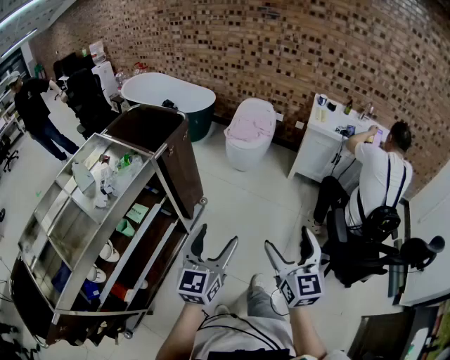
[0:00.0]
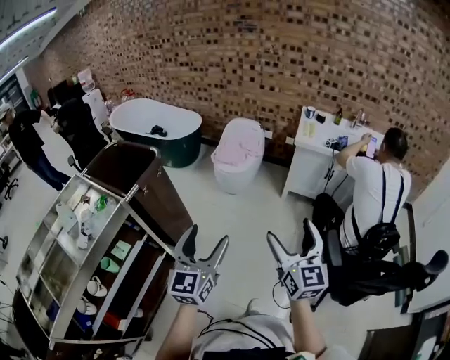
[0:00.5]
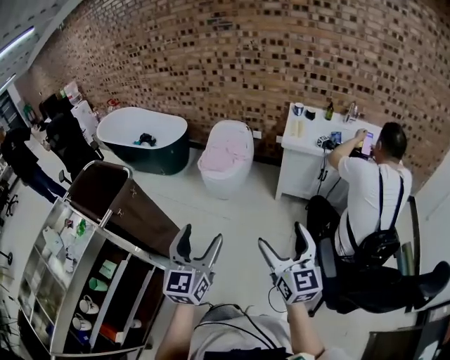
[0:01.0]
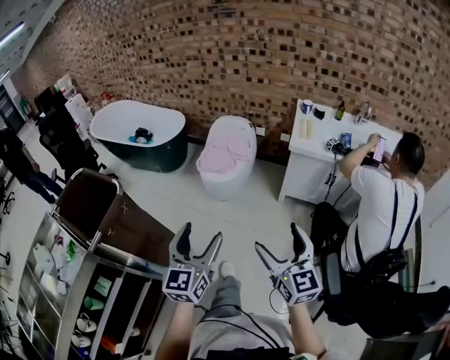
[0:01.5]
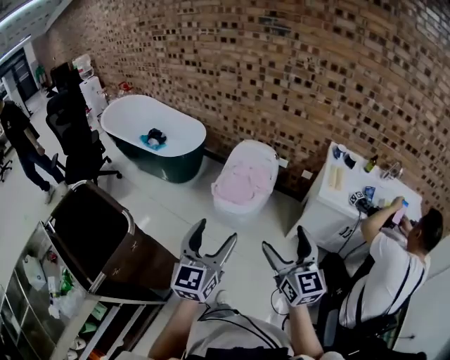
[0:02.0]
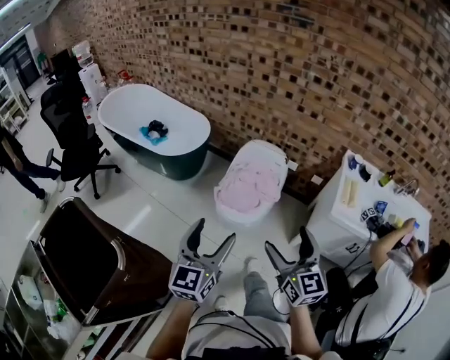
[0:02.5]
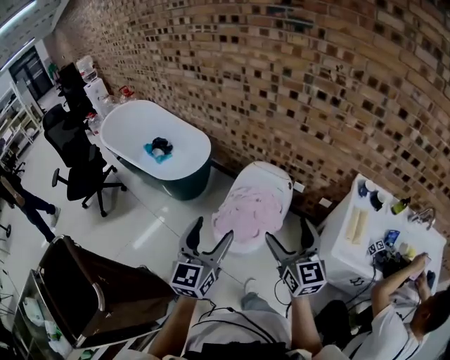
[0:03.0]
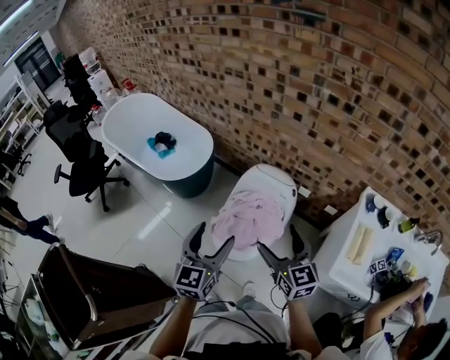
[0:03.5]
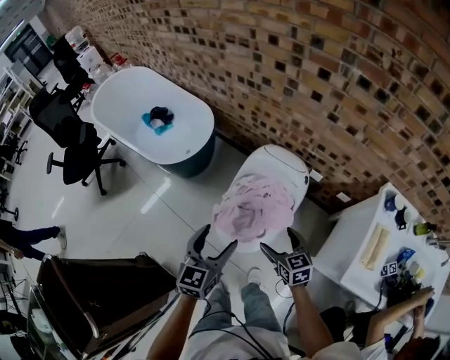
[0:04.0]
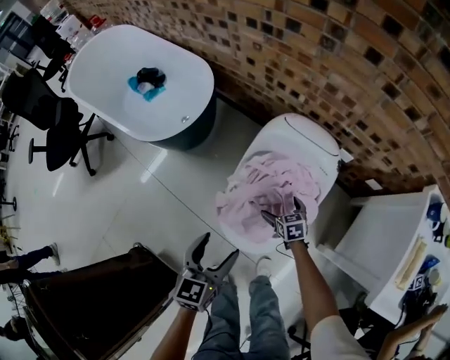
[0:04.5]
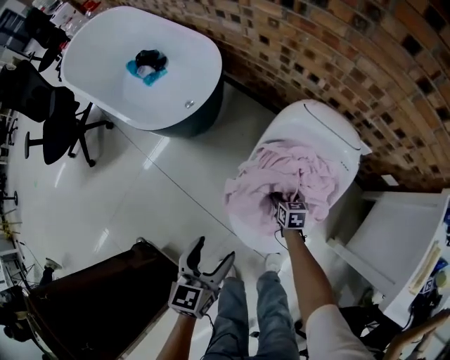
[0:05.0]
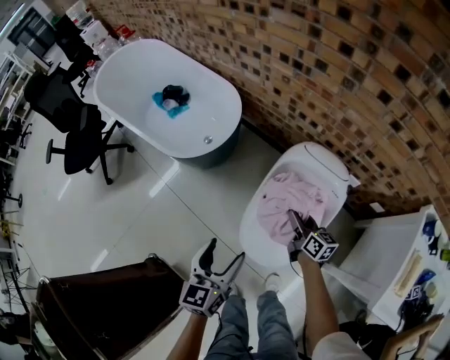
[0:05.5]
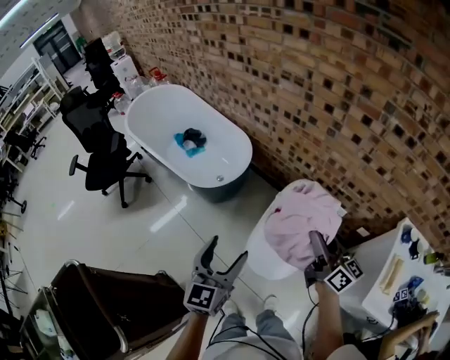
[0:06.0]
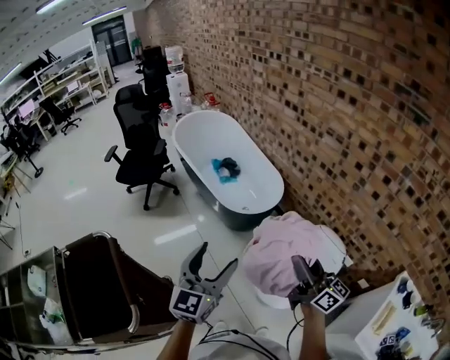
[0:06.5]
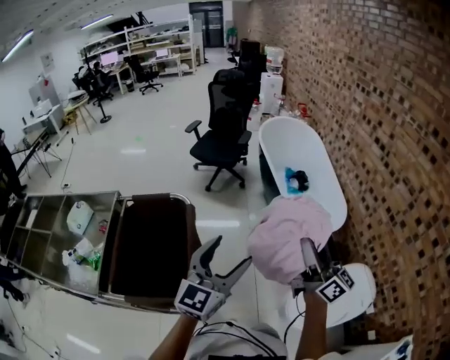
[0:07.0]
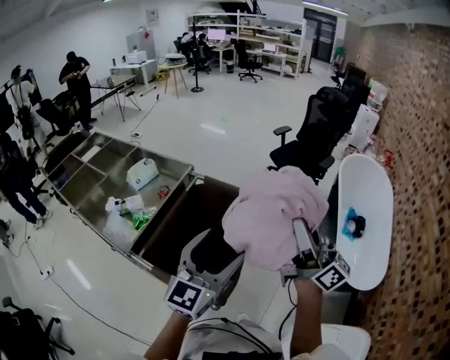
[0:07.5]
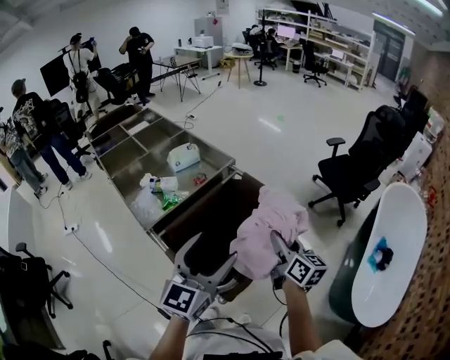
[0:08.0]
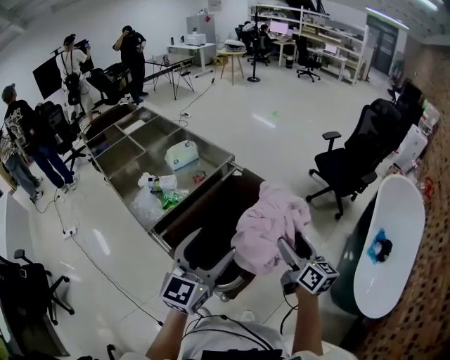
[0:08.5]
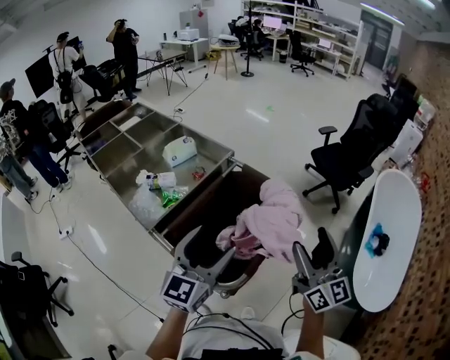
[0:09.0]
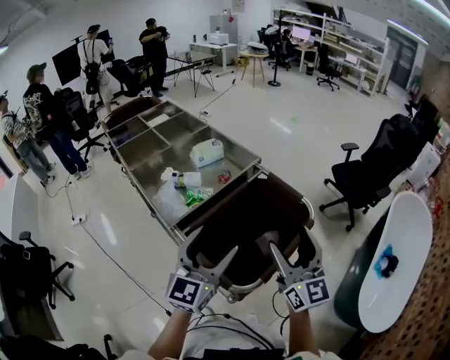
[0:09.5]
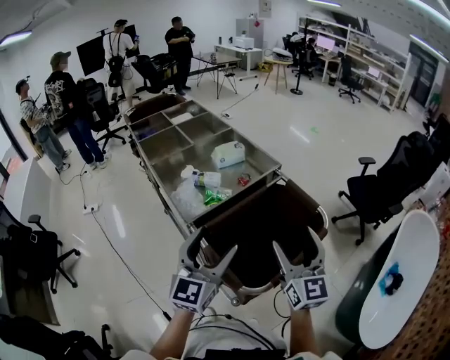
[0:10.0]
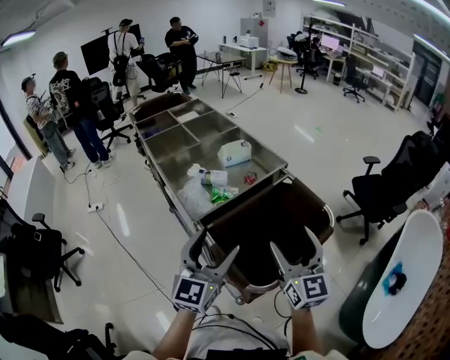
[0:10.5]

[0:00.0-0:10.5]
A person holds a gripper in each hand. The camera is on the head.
0:00.0 to 0:02.0: The two grippers travel together, forward, some 60 cm.
0:02.0 to 0:04.0: The pair of grippers is taken forward, some 50 cm. The right gripper is displaced downward by roughly 30 cm, and swivels about 40 degrees, while the left gripper changes its angle by about 20 degrees.
0:04.0 to 0:06.5: The right gripper heads upward and to the left, covering roughly 40 cm, points its fingers about 50 degrees further upward, and closes its fingers. The left gripper travels to the left and upward by roughly 35 cm, and swivels approximately 30 degrees.
0:06.5 to 0:08.5: The pair of grippers is taken some 50 cm. The left gripper turns by roughly 70 degrees; the right gripper turns by approximately 70 degrees, and opens up.
0:08.5 to 0:10.5: The right gripper travels to the left and upward by roughly 20 cm, and turns by about 40 degrees. The left gripper goes roughly 10 cm to the left.

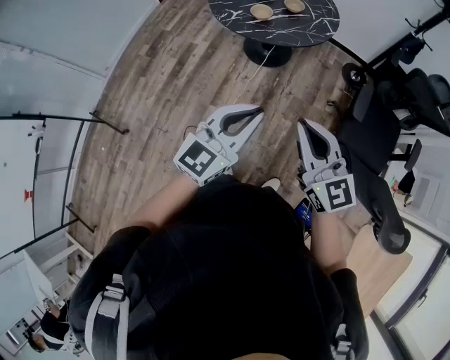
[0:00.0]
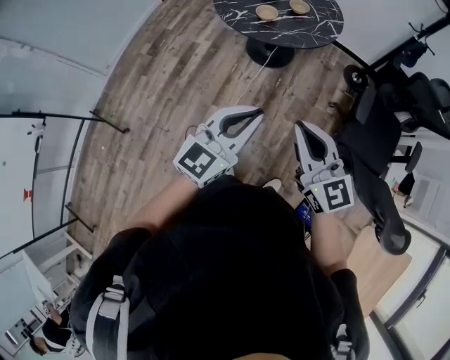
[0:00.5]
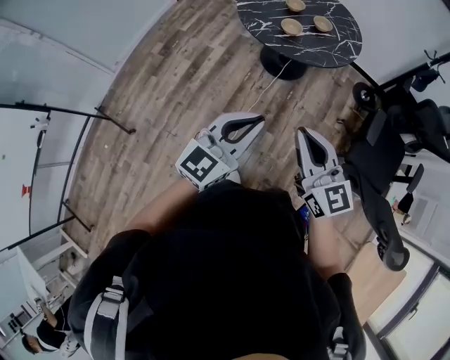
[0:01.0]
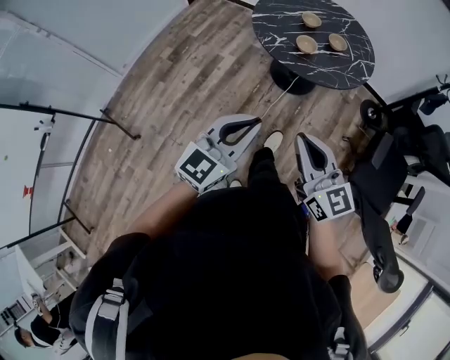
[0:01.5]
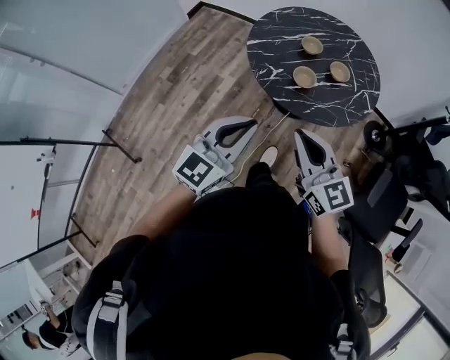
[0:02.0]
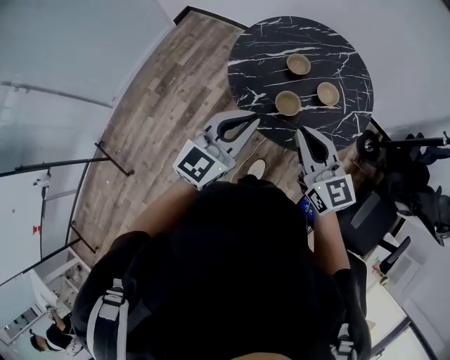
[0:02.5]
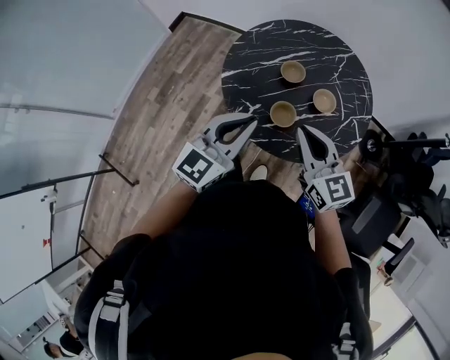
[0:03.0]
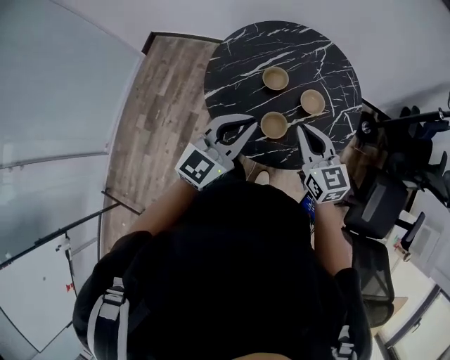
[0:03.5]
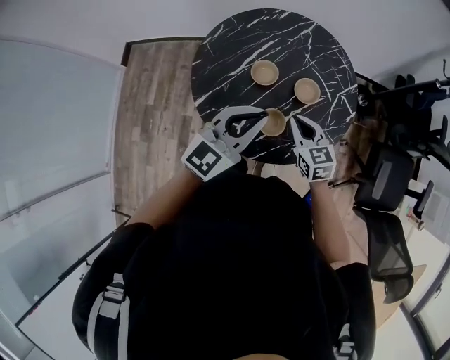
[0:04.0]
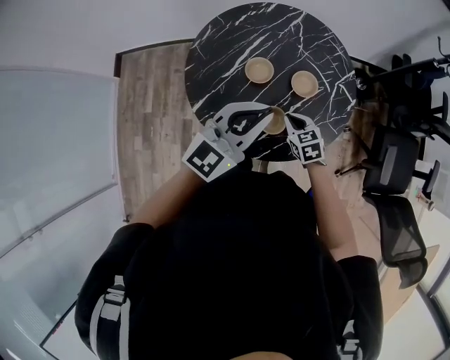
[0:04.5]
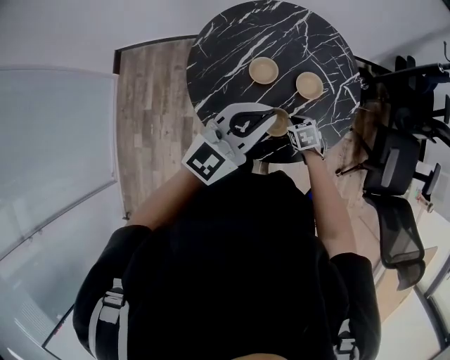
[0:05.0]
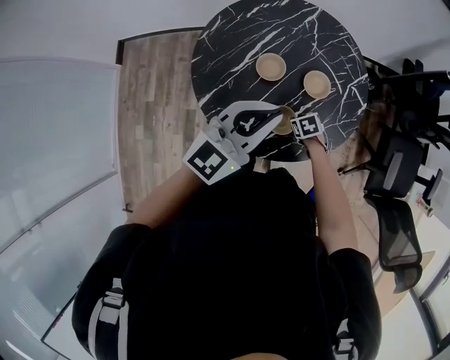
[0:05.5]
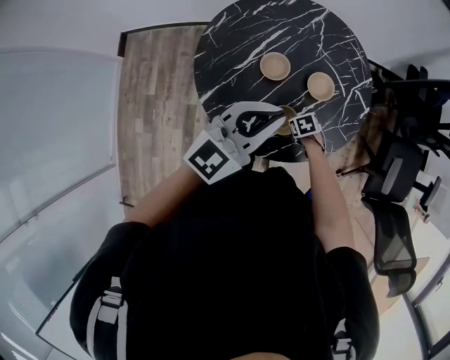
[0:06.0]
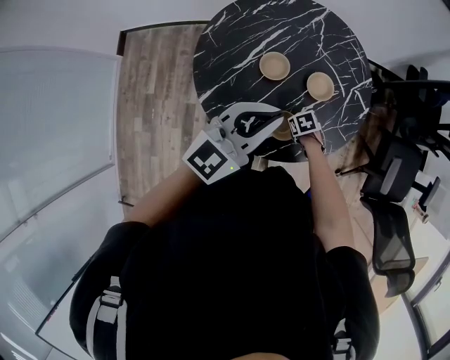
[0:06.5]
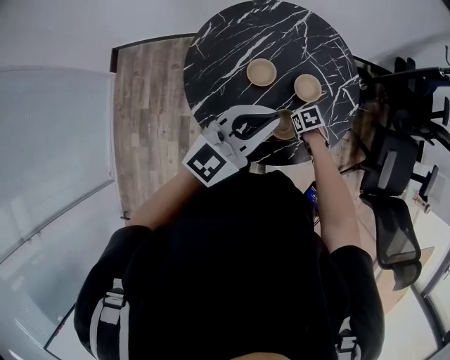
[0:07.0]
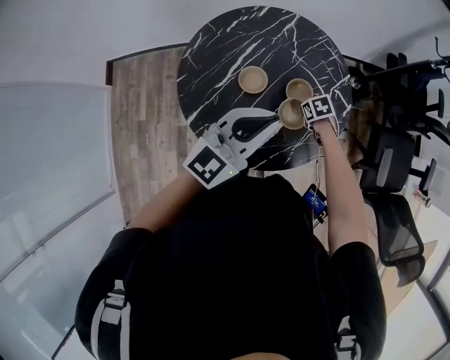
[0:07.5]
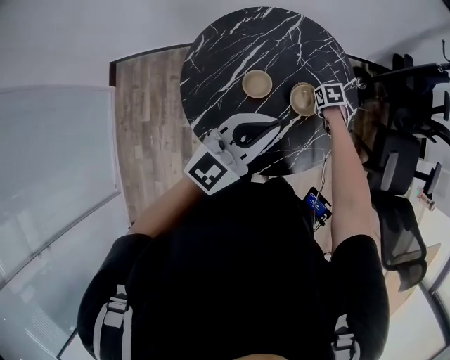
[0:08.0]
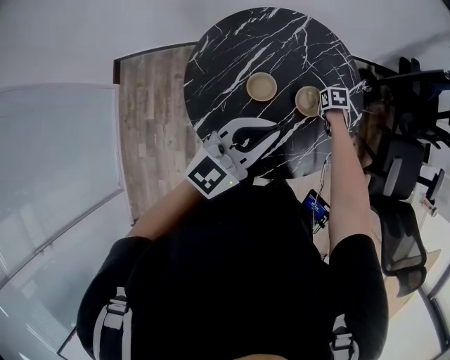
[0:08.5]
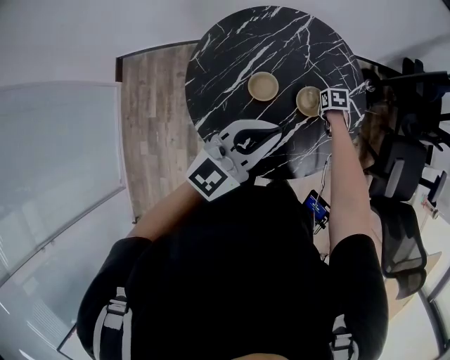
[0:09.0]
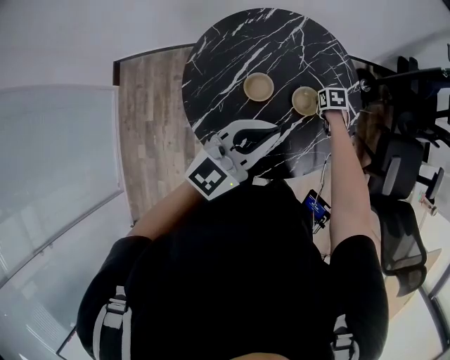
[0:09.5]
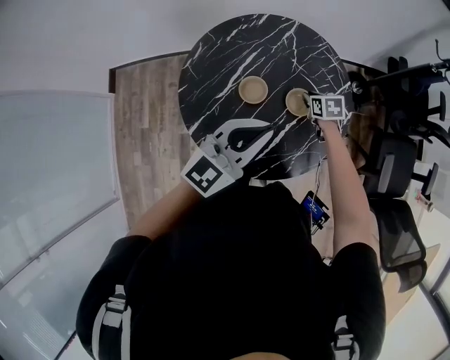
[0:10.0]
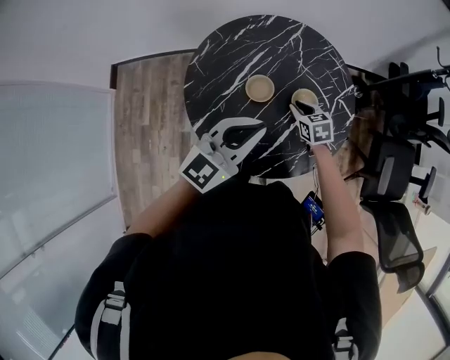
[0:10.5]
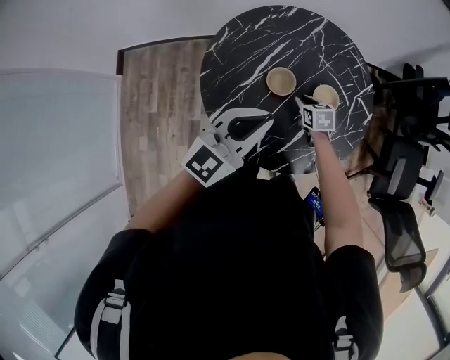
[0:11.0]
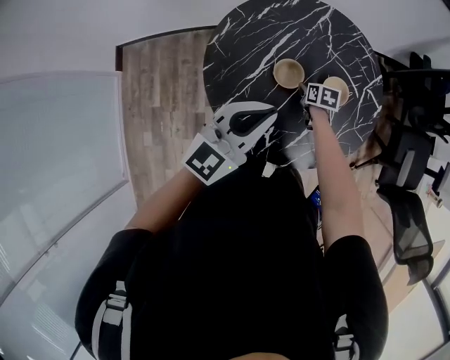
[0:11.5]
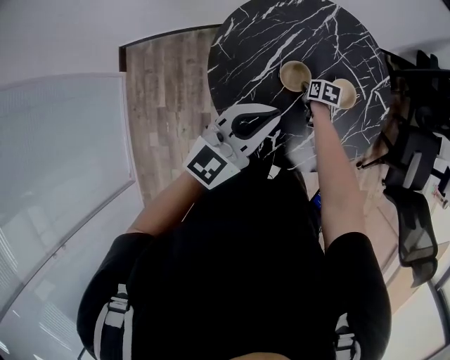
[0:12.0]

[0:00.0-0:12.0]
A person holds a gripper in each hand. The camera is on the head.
0:00.0 to 0:02.0: The two grippers go approximately 35 cm forward and to the left.
0:02.0 to 0:04.0: The right gripper changes place by roughly 40 cm, and rotates roughly 40 degrees, while the left gripper changes place by roughly 40 cm, and rotates about 30 degrees.
0:04.0 to 0:06.0: The right gripper heads downward, covering about 25 cm, and angles its fingers downward, by about 50 degrees.
0:06.0 to 0:08.0: The right gripper ends up some 20 cm from where it was.
0:08.0 to 0:10.0: The right gripper shifts approximately 5 cm upward.
0:10.0 to 0:12.0: The left gripper goes about 15 cm to the left. The right gripper travels to the left and downward by approximately 20 cm, and turns by about 20 degrees.

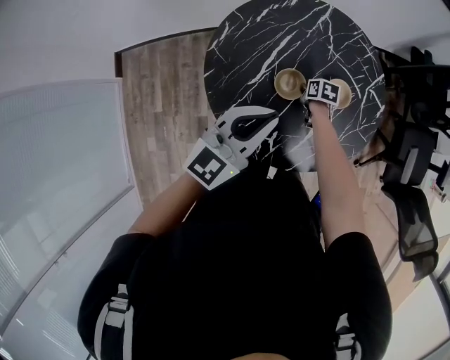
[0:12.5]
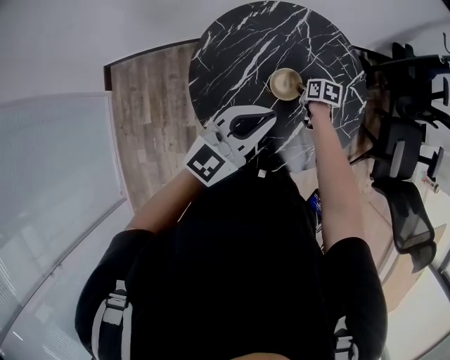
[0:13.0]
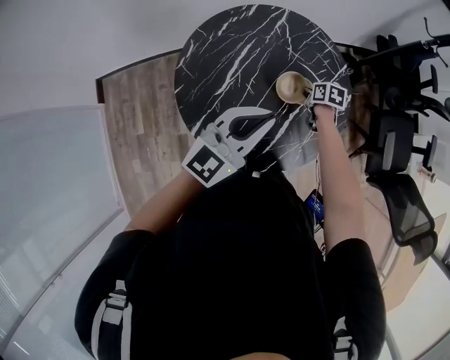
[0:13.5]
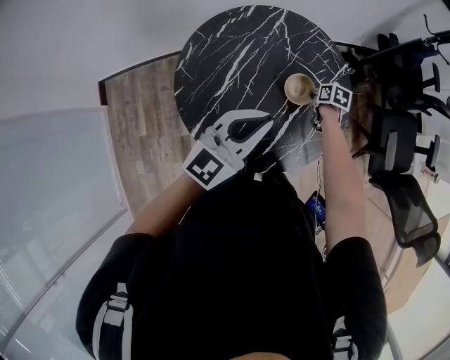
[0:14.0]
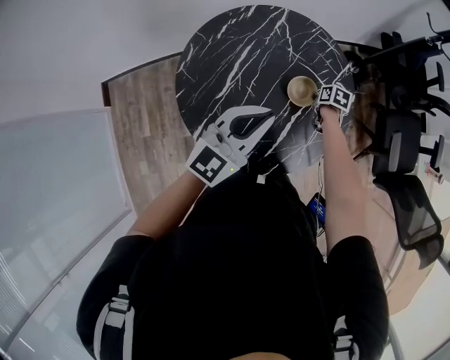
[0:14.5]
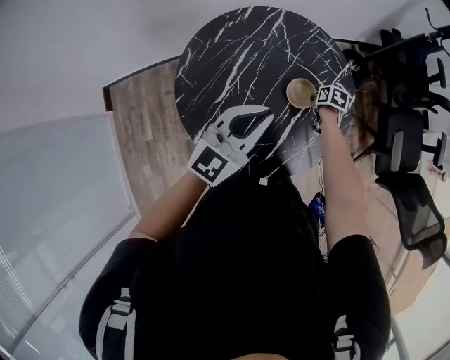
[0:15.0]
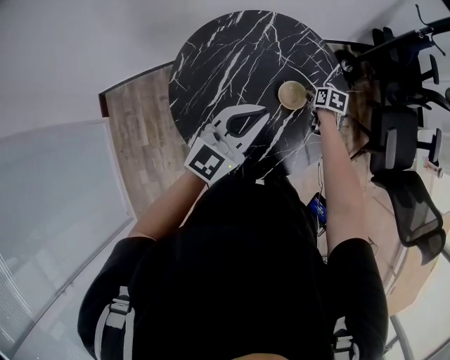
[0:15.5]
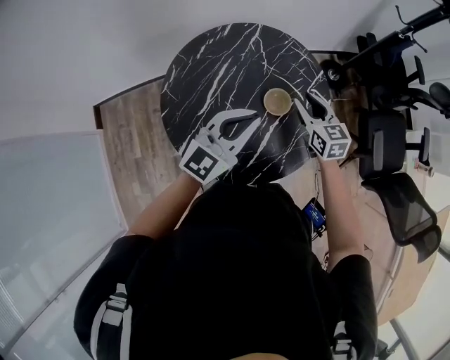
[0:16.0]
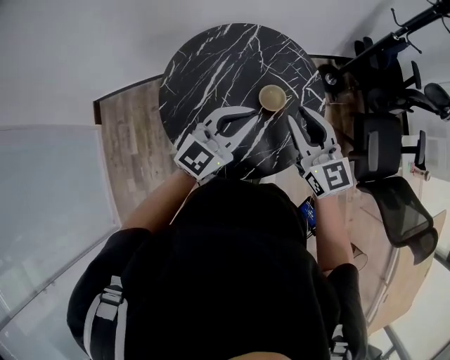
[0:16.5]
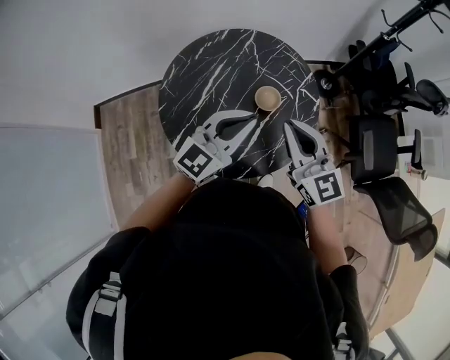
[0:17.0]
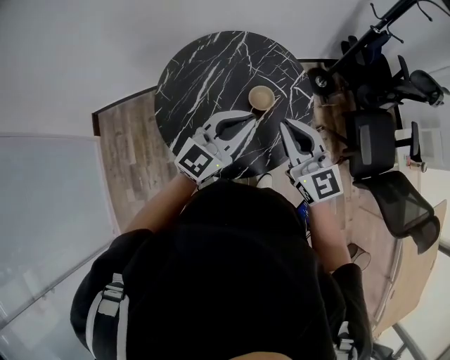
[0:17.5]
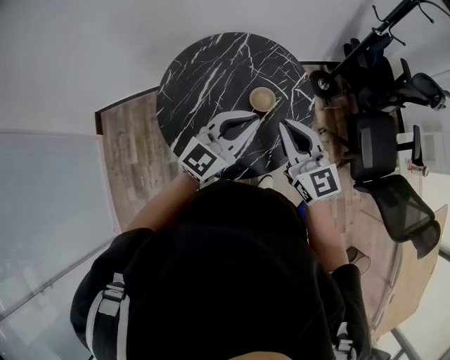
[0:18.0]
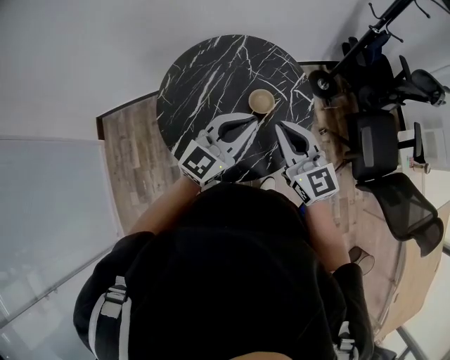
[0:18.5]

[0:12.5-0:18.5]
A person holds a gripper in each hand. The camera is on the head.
0:12.5 to 0:14.5: The right gripper heads to the right, covering roughly 20 cm, while the left gripper heads to the right, covering about 10 cm.
0:14.5 to 0:16.5: The right gripper goes about 35 cm upward, angles its fingers upward, by some 60 degrees, and opens up; the left gripper is displaced to the right by about 5 cm.
0:16.5 to 0:18.5: The left gripper changes place by roughly 5 cm. Meanwhile the right gripper heads backward, covering about 5 cm, and closes.
